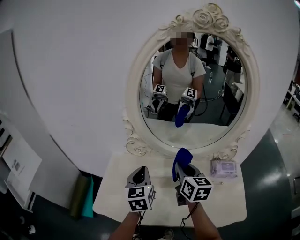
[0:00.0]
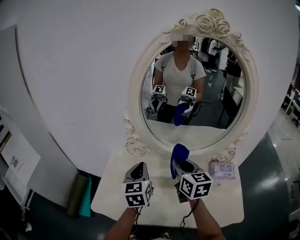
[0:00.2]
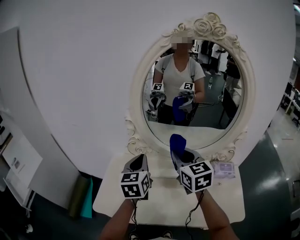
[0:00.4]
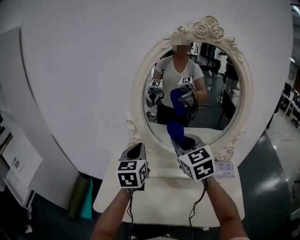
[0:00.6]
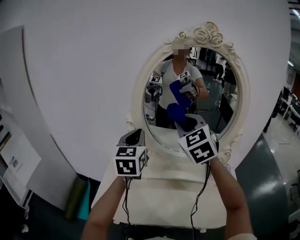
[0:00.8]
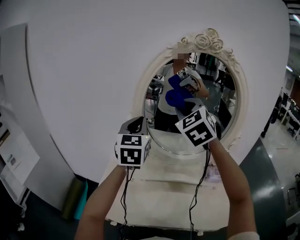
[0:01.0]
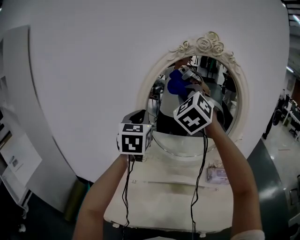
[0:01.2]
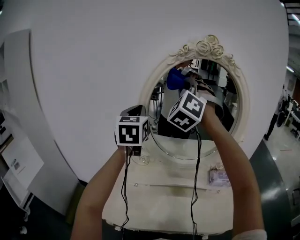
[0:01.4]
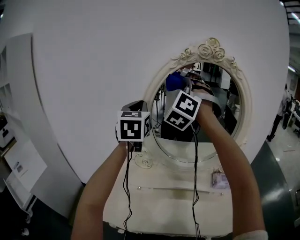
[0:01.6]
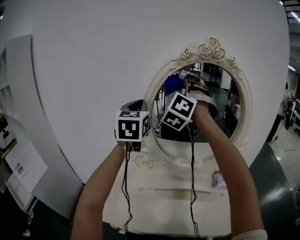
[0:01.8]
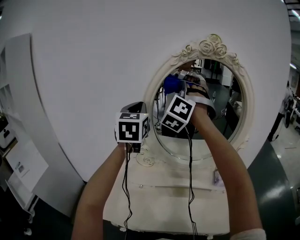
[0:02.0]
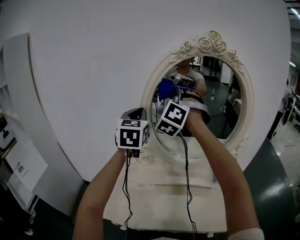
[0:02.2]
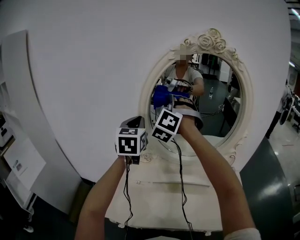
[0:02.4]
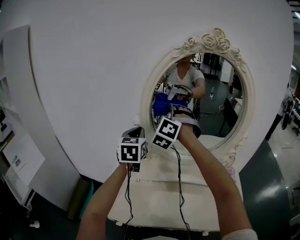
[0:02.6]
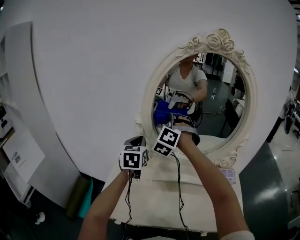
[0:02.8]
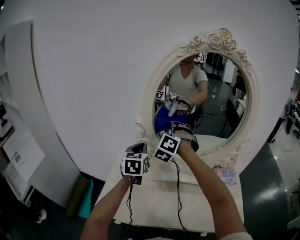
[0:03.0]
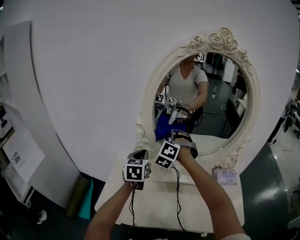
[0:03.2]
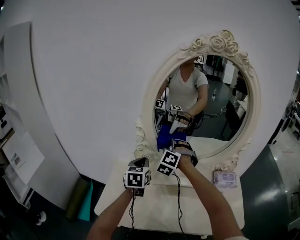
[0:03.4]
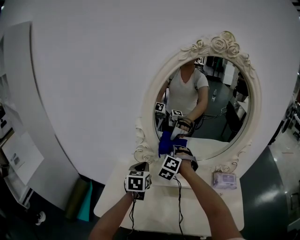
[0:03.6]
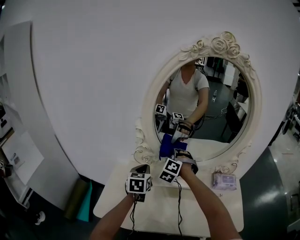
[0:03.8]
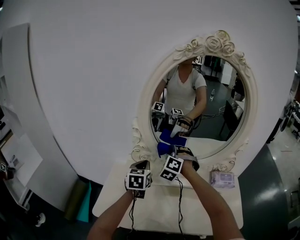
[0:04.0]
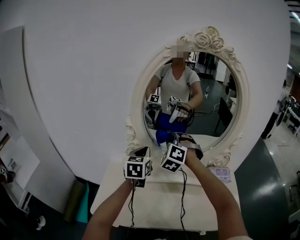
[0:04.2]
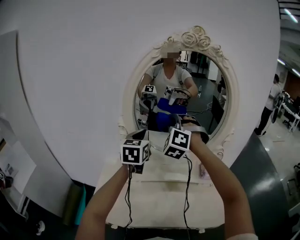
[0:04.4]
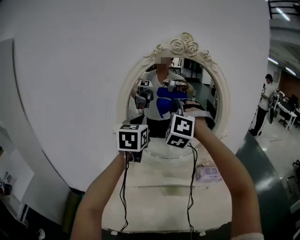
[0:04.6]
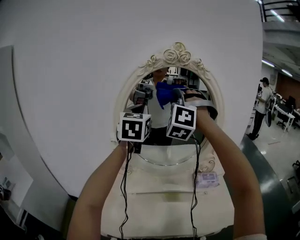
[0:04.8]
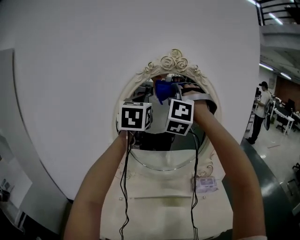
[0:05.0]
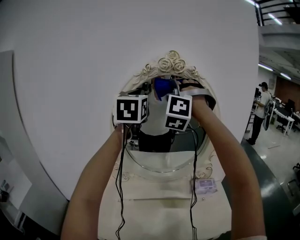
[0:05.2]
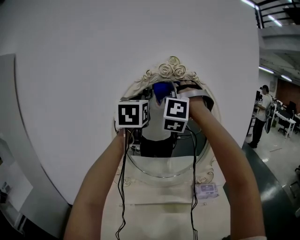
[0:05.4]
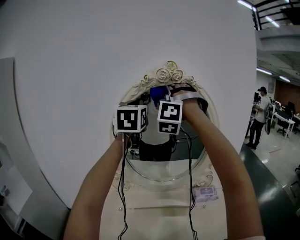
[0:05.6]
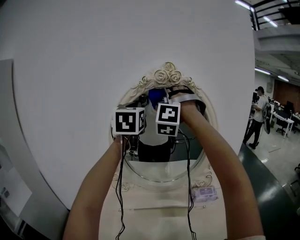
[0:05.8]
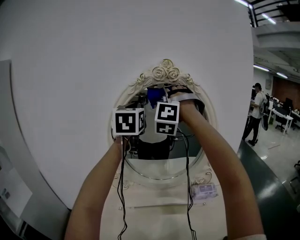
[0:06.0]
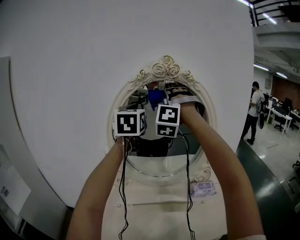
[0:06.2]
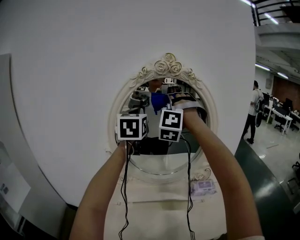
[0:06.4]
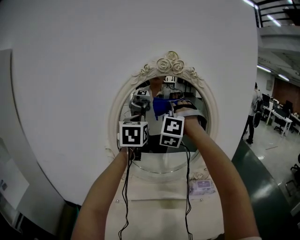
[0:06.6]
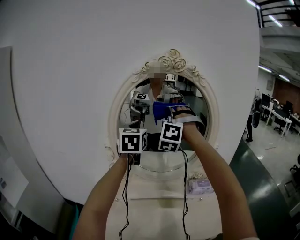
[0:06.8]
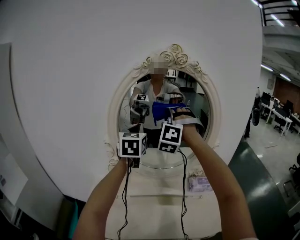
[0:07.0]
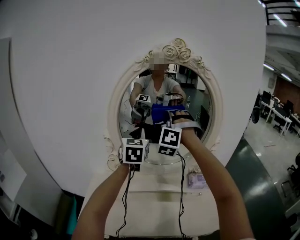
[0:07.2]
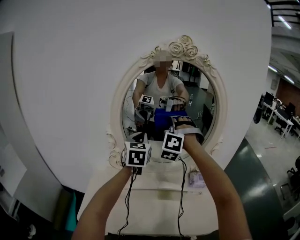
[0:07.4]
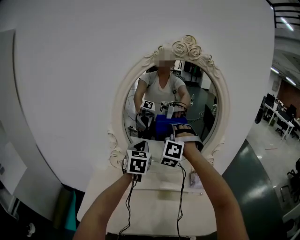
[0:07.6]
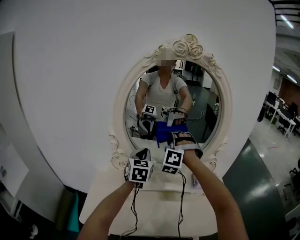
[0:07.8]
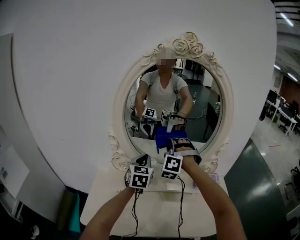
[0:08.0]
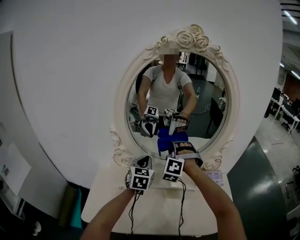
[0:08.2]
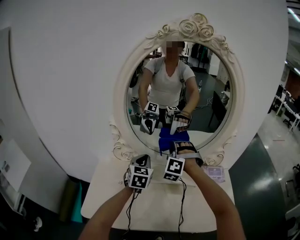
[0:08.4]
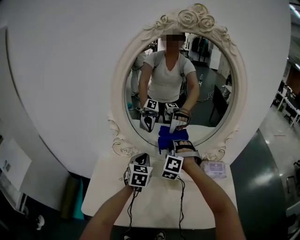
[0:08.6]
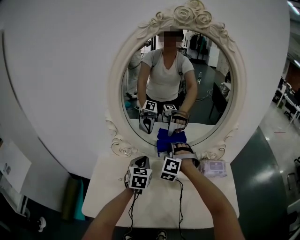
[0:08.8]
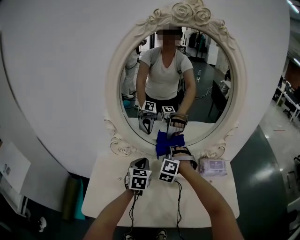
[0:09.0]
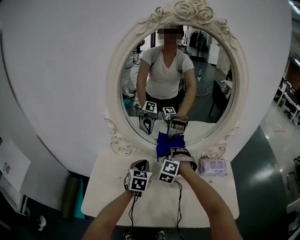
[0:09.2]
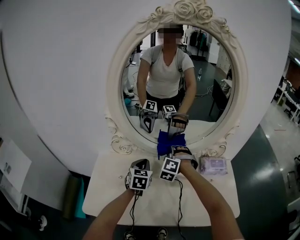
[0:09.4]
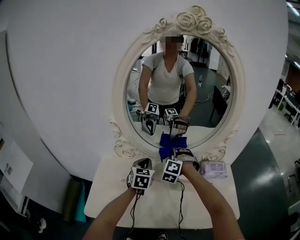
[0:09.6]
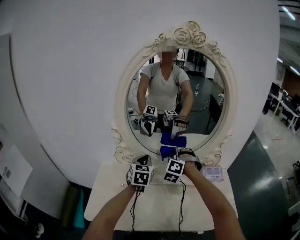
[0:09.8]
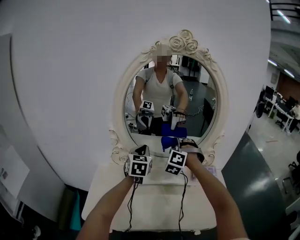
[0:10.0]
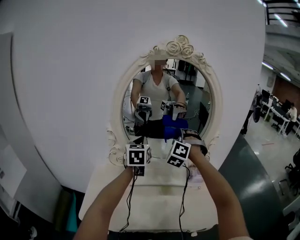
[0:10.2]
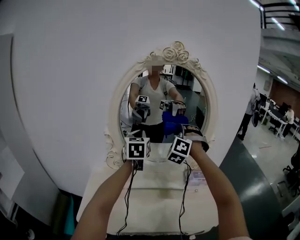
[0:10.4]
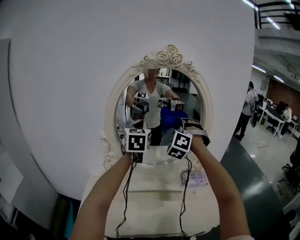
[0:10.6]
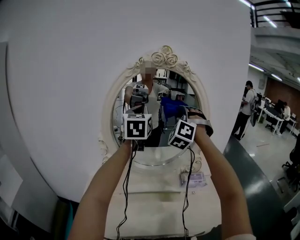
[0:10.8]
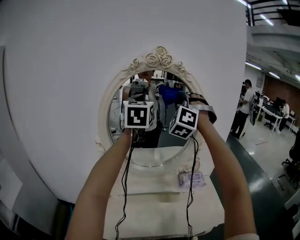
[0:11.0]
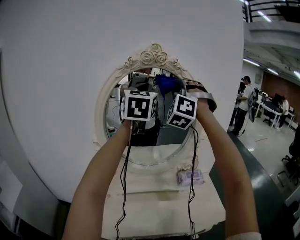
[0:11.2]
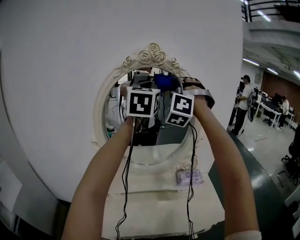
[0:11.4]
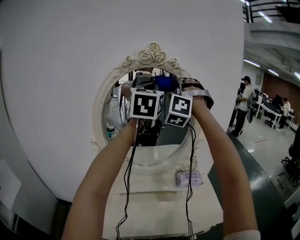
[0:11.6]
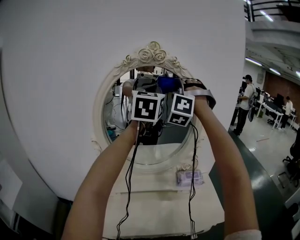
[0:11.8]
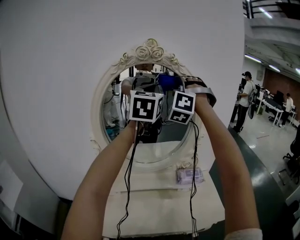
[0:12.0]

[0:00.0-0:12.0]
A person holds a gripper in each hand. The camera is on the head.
0:00.0 to 0:01.6: The two grippers go some 35 cm upward. The right gripper twists roughly 90 degrees counterclockwise, seen from behind. The left gripper swivels roughly 20 degrees.
0:01.6 to 0:03.0: The two grippers go about 25 cm downward. The left gripper changes its angle by approximately 20 degrees, while the right gripper changes its angle by roughly 20 degrees.
0:03.0 to 0:04.4: The right gripper shifts roughly 10 cm to the right, and goes downward and returns, about 15 cm each way. Meanwhile the left gripper goes some 10 cm upward and to the right.
0:04.4 to 0:06.0: The grippers both shift upward by approximately 25 cm. The right gripper turns by approximately 30 degrees.
0:06.0 to 0:07.6: The two grippers go about 30 cm downward.
0:07.6 to 0:09.0: The grippers both shift downward by about 20 cm. The right gripper changes its angle by about 20 degrees.
0:09.0 to 0:10.4: The two grippers go approximately 25 cm upward. The right gripper rotates about 20 degrees.
0:10.4 to 0:12.0: The right gripper heads upward, covering roughly 20 cm. The left gripper is displaced upward and to the right by approximately 25 cm, and changes its angle by some 20 degrees.

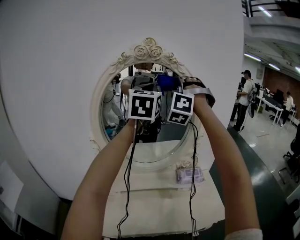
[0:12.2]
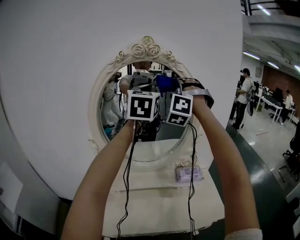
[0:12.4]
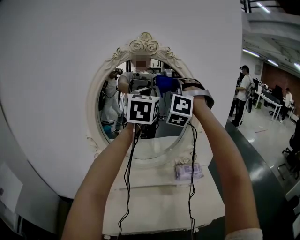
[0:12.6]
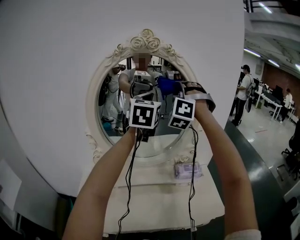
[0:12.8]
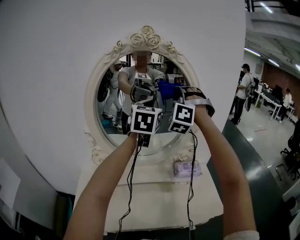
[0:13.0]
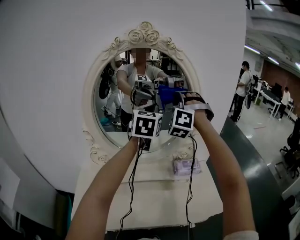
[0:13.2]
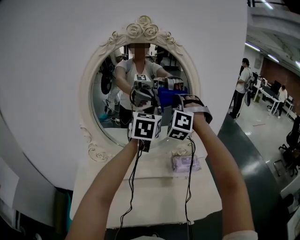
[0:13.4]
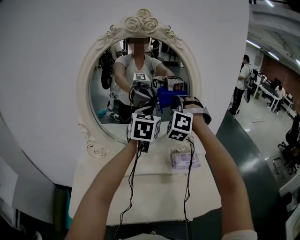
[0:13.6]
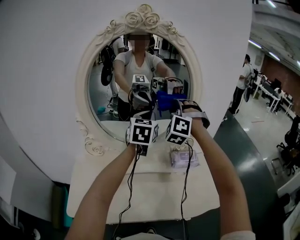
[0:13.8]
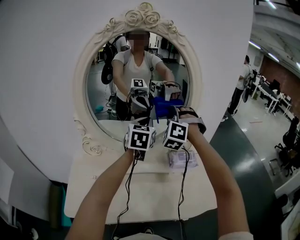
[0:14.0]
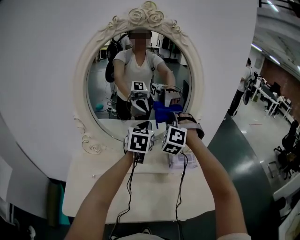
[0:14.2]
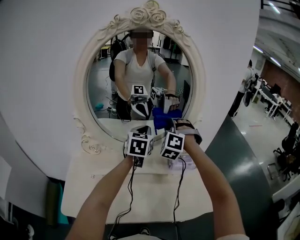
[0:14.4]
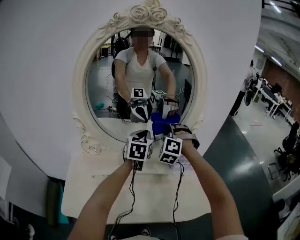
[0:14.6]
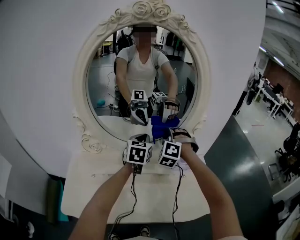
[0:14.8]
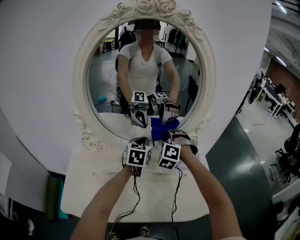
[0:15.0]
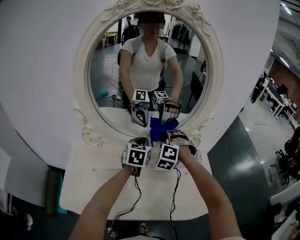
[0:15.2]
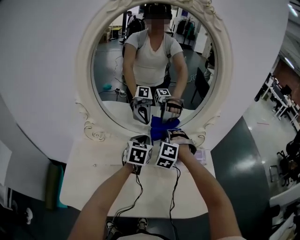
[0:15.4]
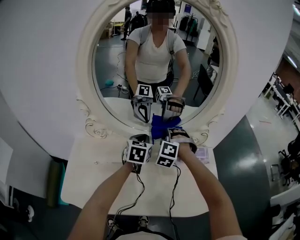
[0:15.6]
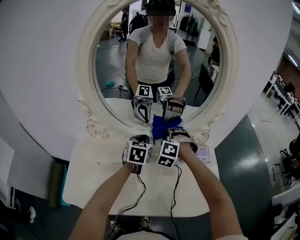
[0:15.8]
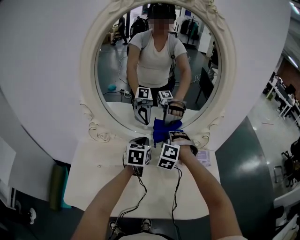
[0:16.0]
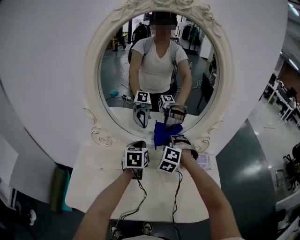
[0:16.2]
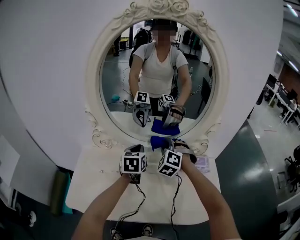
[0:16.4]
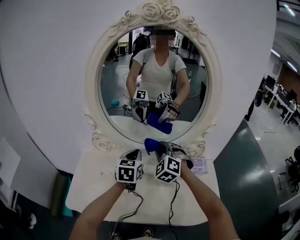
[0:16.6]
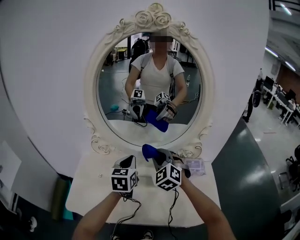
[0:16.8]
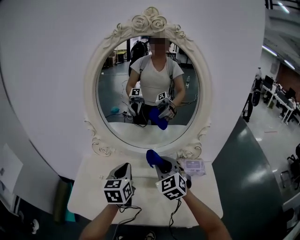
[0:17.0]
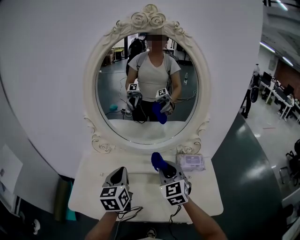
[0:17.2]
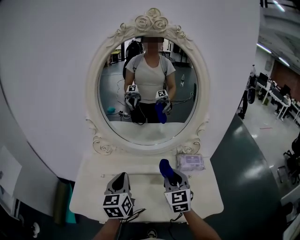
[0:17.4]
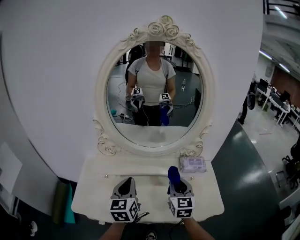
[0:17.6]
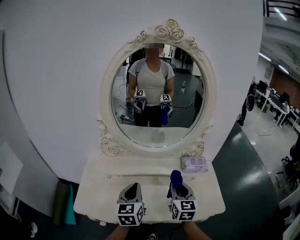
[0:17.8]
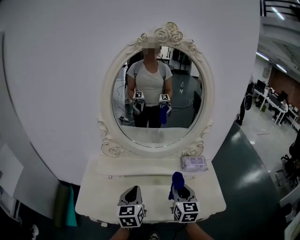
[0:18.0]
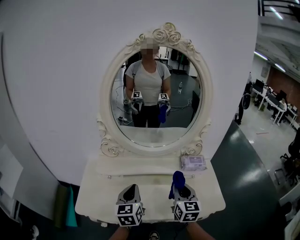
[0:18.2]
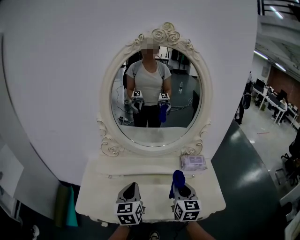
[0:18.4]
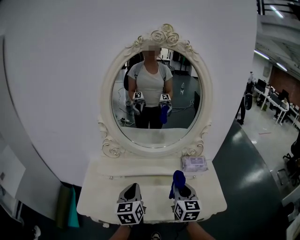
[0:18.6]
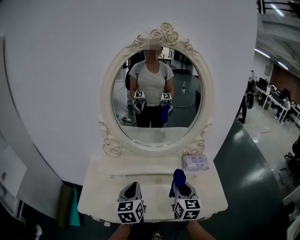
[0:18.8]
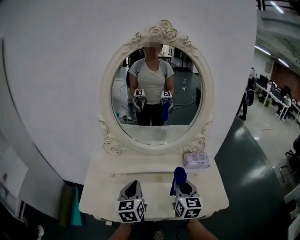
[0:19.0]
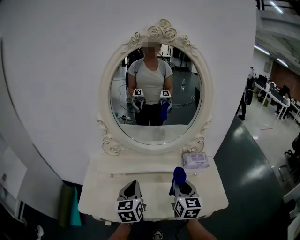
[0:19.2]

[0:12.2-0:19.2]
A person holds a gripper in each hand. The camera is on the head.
0:12.2 to 0:13.6: The grippers both shift downward by approximately 20 cm.
0:13.6 to 0:15.0: Both grippers move downward, some 20 cm. The right gripper rotates roughly 20 degrees.
0:15.0 to 0:16.4: The right gripper changes place by approximately 5 cm. Meanwhile the left gripper goes roughly 5 cm to the left.
0:16.4 to 0:17.8: The grippers both shift backward by some 20 cm. The right gripper rotates around the line of its fingers by approximately 70 degrees, clockwise from behind.
0:17.8 to 0:19.2: The grippers move only a little.

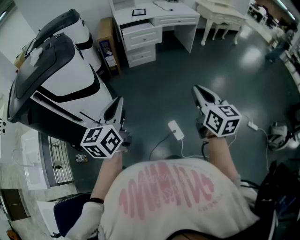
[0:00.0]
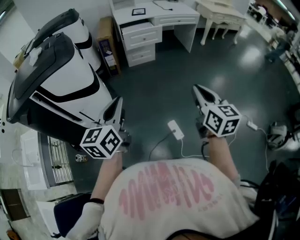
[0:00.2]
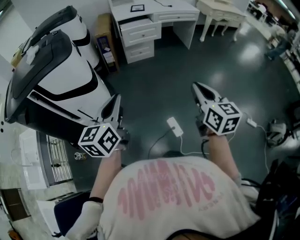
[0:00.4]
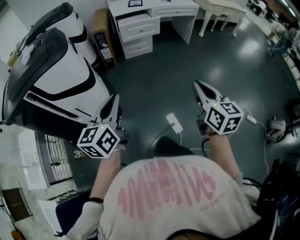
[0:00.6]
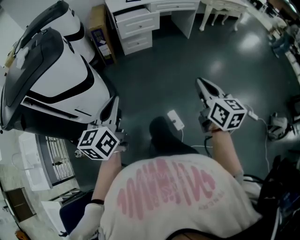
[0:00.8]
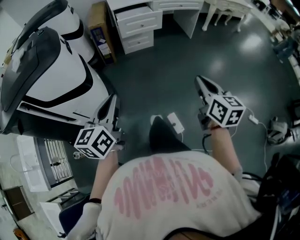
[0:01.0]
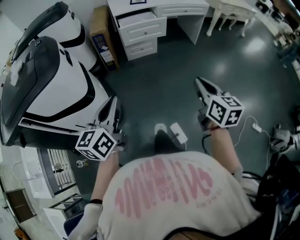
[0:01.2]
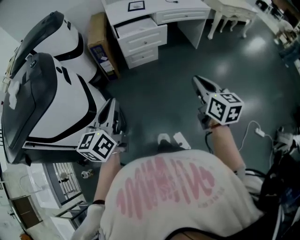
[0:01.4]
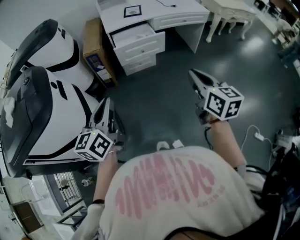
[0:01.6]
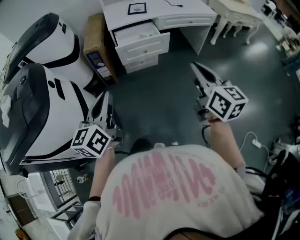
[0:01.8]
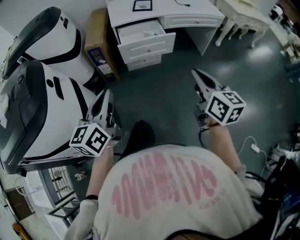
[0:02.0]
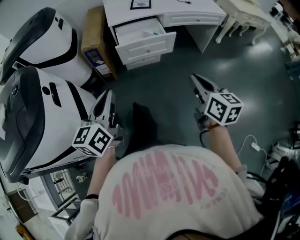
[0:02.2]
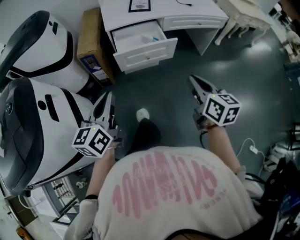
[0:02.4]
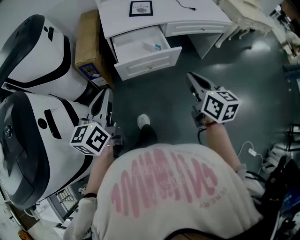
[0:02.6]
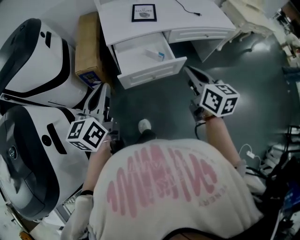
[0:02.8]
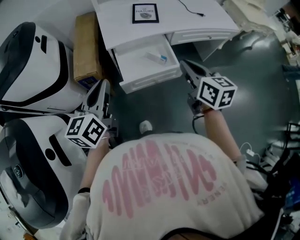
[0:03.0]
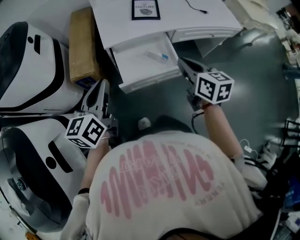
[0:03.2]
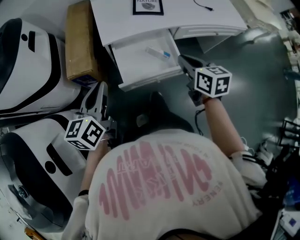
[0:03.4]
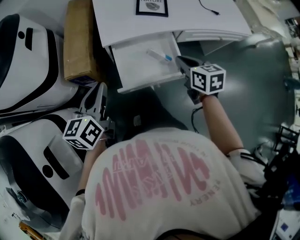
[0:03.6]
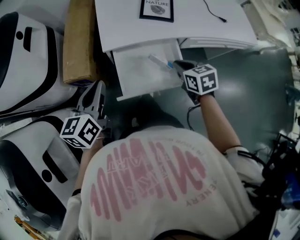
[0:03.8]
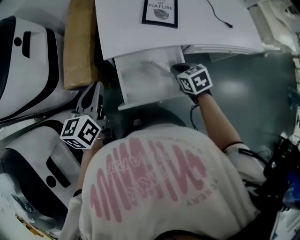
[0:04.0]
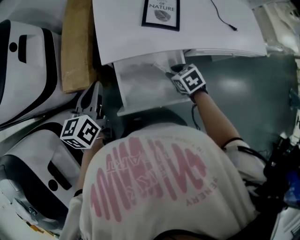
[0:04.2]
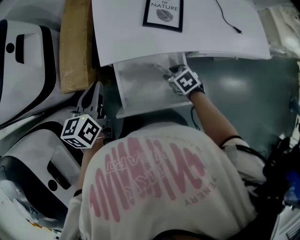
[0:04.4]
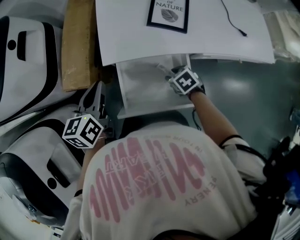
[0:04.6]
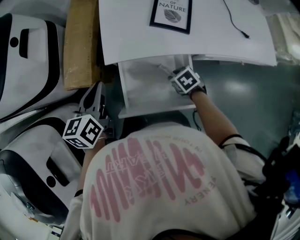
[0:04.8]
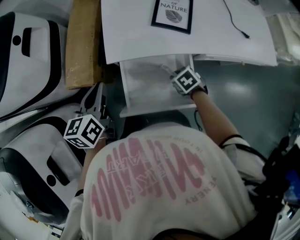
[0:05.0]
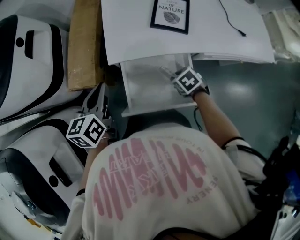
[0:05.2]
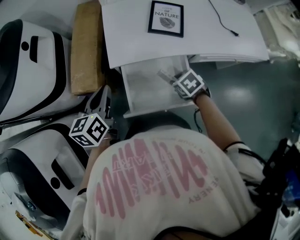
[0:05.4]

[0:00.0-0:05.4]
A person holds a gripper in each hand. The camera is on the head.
0:00.0 to 0:01.4: The grippers both shift forward by about 30 cm.
0:01.4 to 0:02.8: Both grippers are carried forward, roughly 50 cm.
0:02.8 to 0:04.0: The grippers both shift forward and downward by some 30 cm. The right gripper tilts its fingers roughly 40 degrees downward.
